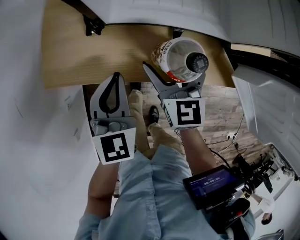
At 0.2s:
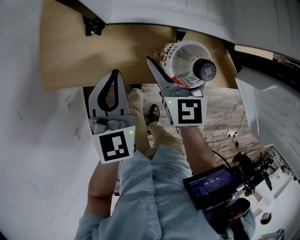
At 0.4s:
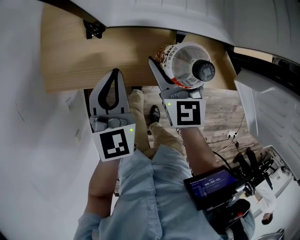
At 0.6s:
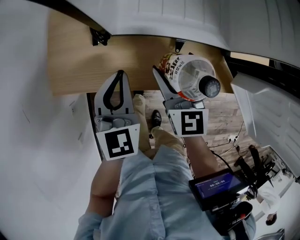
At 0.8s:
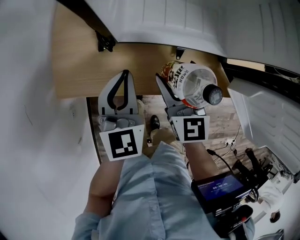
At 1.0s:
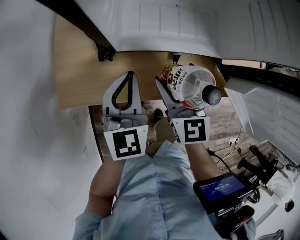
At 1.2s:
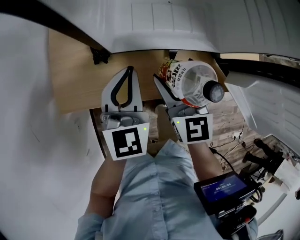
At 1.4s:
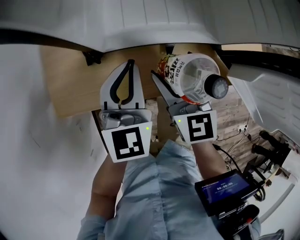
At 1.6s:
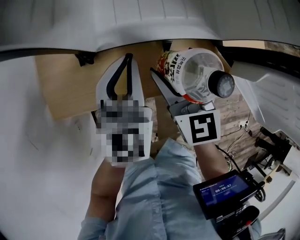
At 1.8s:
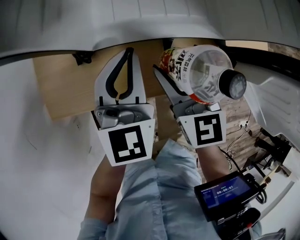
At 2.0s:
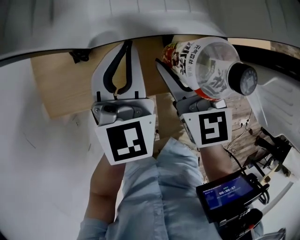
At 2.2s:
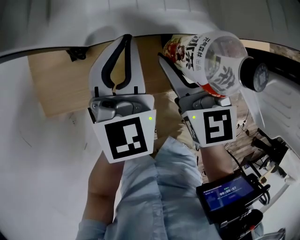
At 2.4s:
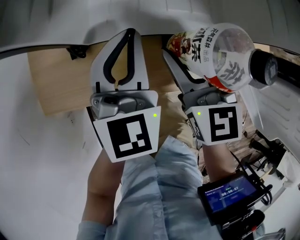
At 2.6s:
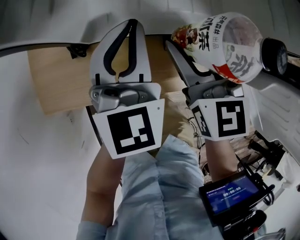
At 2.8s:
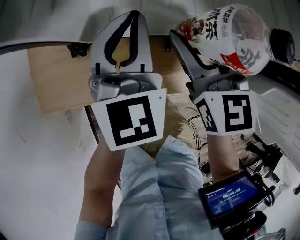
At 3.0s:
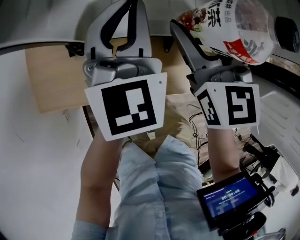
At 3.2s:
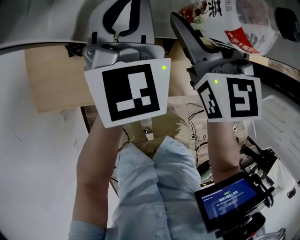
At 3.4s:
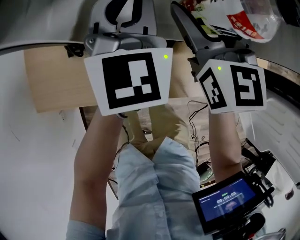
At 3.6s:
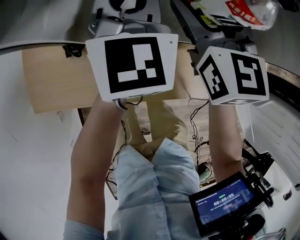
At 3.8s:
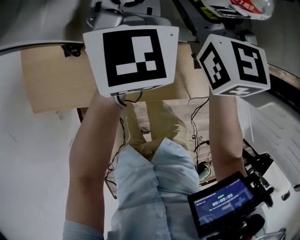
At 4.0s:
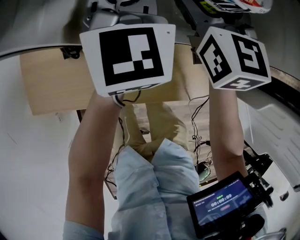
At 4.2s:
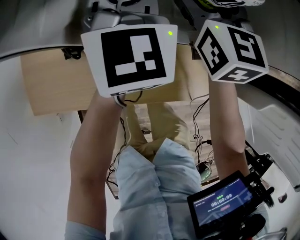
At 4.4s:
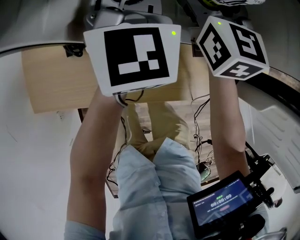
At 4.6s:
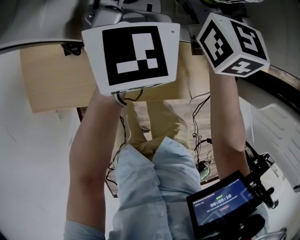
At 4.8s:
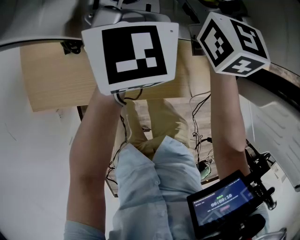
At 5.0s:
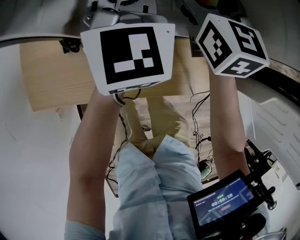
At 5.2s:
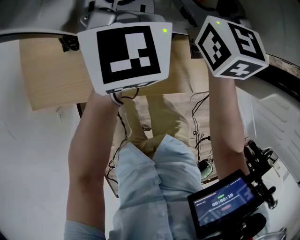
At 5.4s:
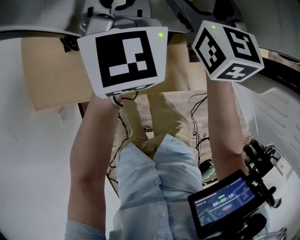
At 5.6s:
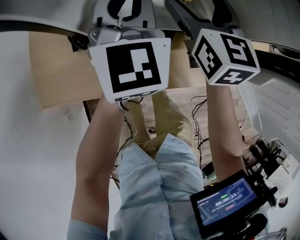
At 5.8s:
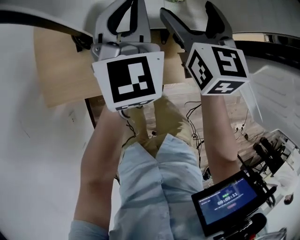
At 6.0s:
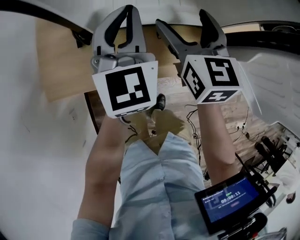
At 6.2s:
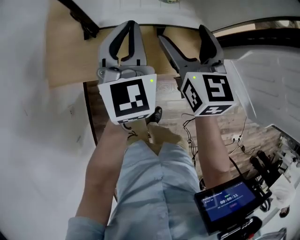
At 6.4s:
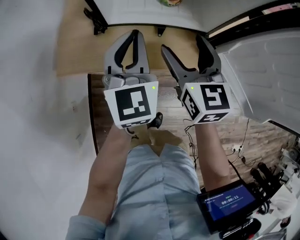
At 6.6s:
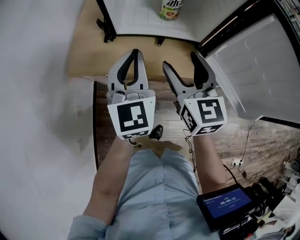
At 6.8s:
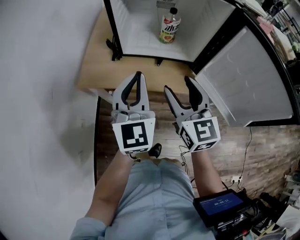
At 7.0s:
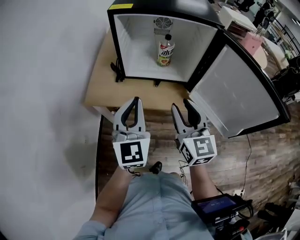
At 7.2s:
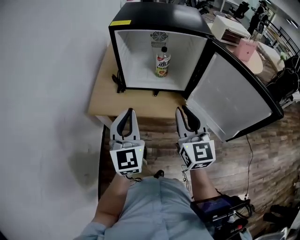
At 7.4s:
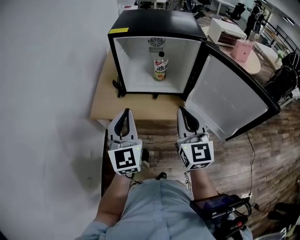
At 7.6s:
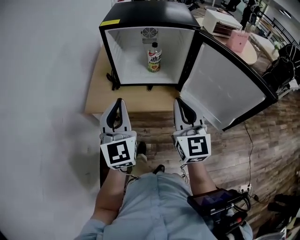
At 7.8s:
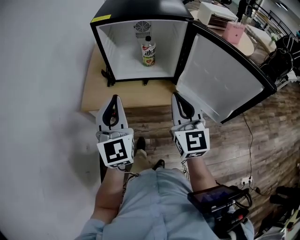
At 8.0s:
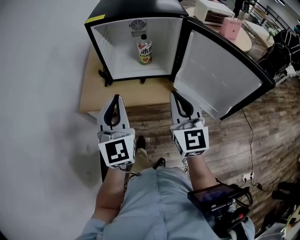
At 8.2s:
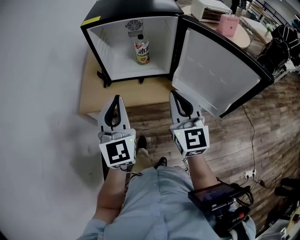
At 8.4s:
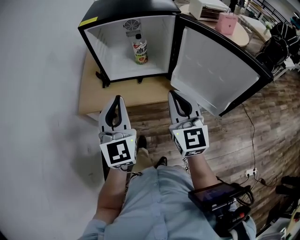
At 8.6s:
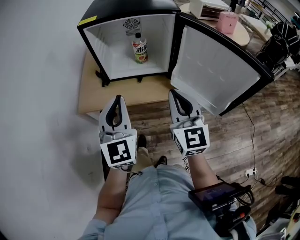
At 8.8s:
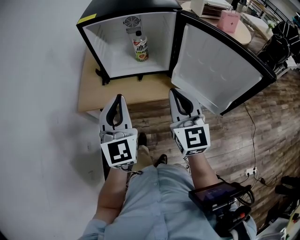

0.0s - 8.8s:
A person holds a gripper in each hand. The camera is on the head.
0.0s - 1.4s: The left gripper travels forward and upward by approximately 10 cm; the right gripper is displaced upward by roughly 5 cm.
1.4s - 3.0s: Both grippers travel together forward, approximately 10 cm.
3.0s - 4.4s: Both grippers move forward, roughly 10 cm.
4.4s - 5.8s: Both grippers move backward, about 5 cm.
5.8s - 7.4s: Both grippers move backward and upward, about 40 cm. The right gripper turns by approximately 30 degrees, and closes its fingers; the left gripper swivels some 20 degrees.
7.4s - 8.8s: The left gripper travels to the right by roughly 5 cm.

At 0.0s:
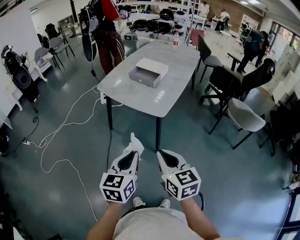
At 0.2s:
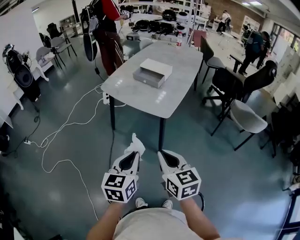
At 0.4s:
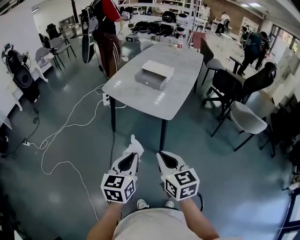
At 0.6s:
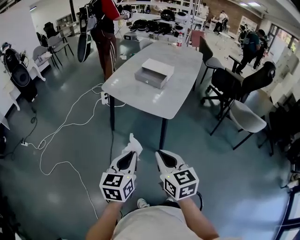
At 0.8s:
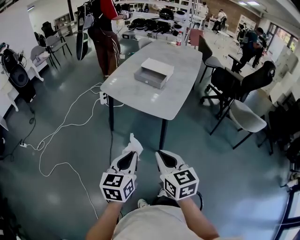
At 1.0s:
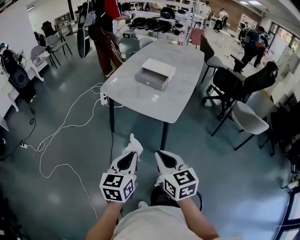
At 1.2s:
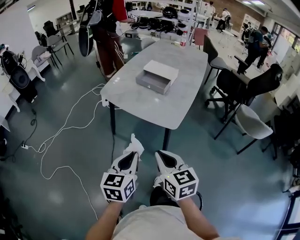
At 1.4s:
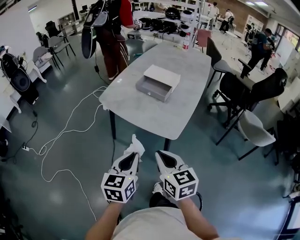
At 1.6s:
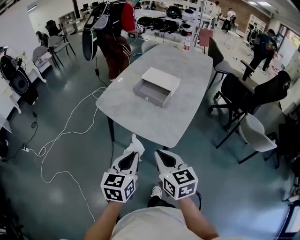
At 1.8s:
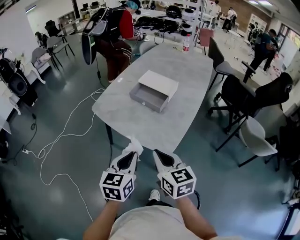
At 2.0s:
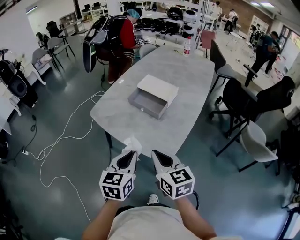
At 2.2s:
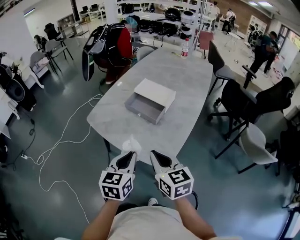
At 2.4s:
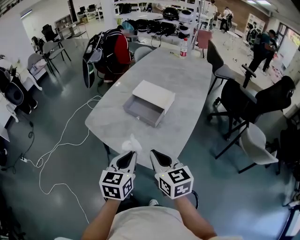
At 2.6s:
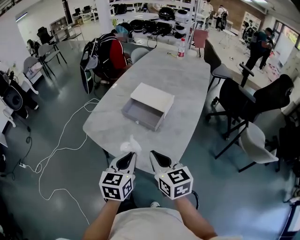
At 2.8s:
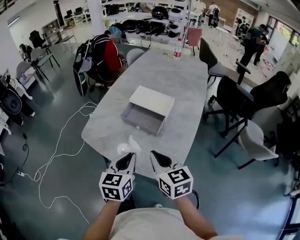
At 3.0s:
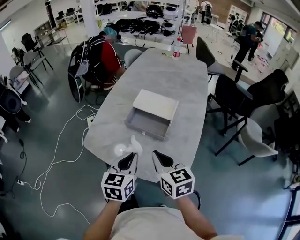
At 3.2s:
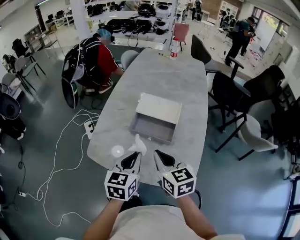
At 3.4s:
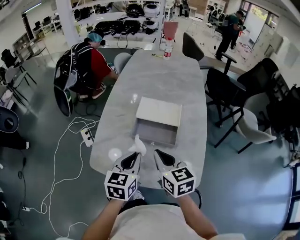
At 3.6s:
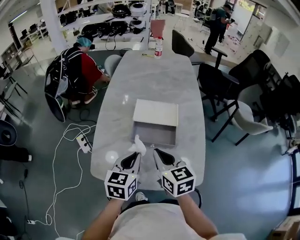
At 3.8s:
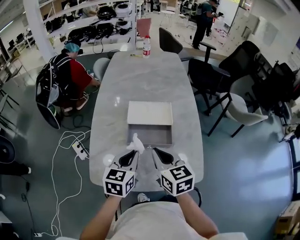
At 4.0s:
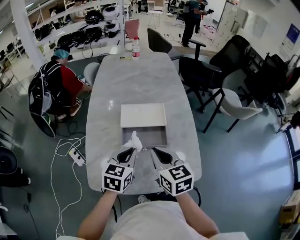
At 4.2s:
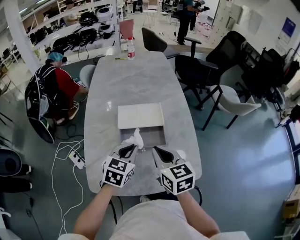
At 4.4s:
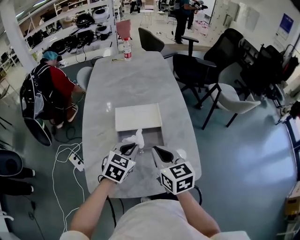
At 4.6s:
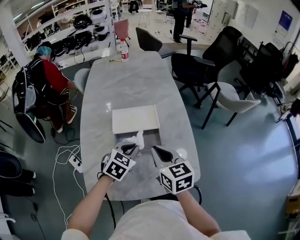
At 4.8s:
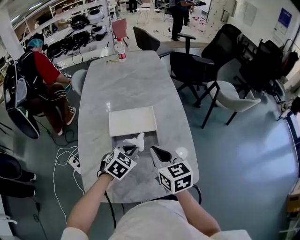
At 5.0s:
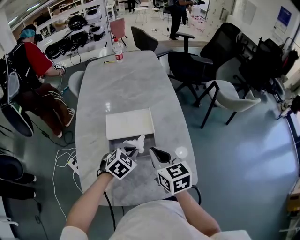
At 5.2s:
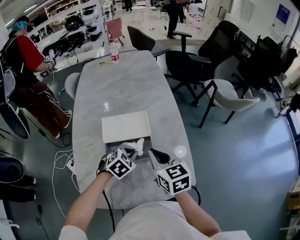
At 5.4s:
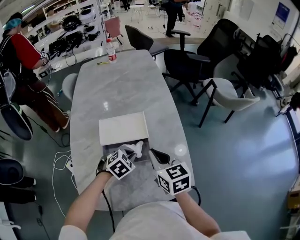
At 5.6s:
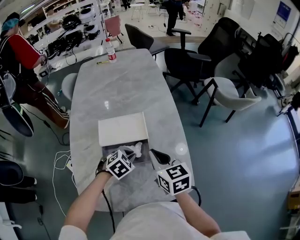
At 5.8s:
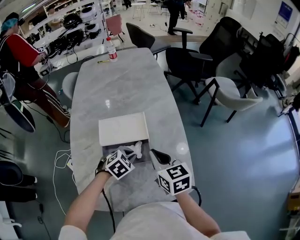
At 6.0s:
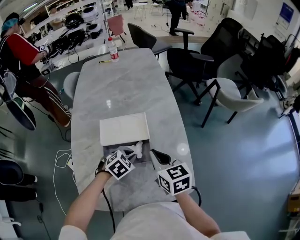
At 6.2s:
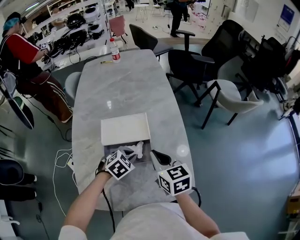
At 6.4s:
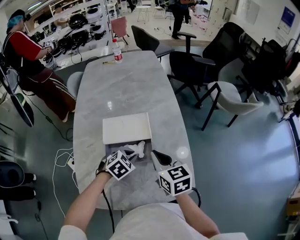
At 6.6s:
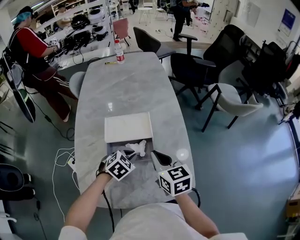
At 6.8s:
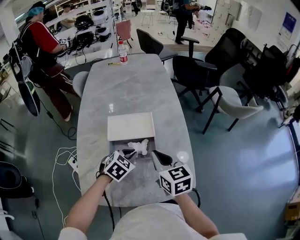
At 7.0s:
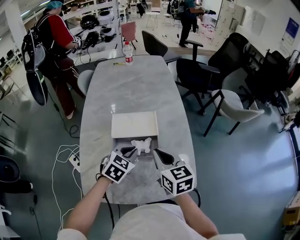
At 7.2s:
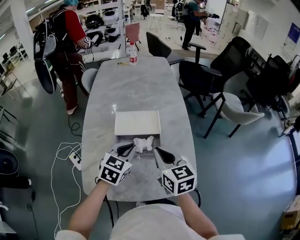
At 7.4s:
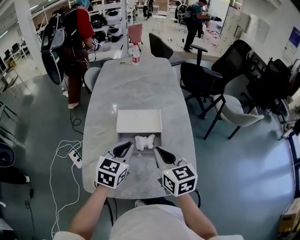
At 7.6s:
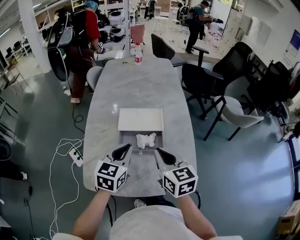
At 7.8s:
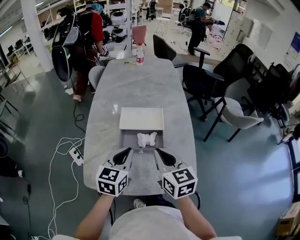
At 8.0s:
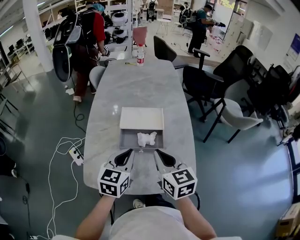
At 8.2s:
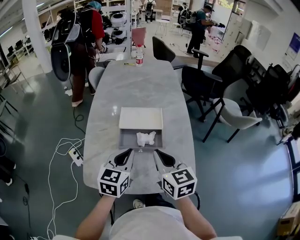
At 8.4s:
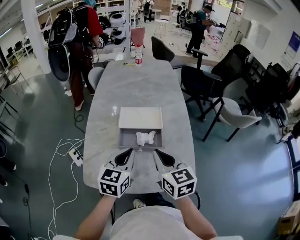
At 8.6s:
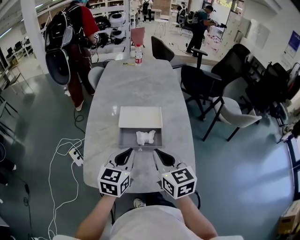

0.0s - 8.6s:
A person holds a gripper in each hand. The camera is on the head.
0.0s - 1.4s: The grippers both shift forward by some 15 cm.
1.4s - 2.8s: Both grippers travel together forward, roughly 25 cm.
2.8s - 4.4s: The left gripper moves about 20 cm, and rotates some 60 degrees; the right gripper moves some 15 cm, and turns by approximately 30 degrees.
4.4s - 5.8s: The right gripper travels forward and to the right by some 10 cm, while the left gripper heads downward, forward and to the right, covering about 15 cm, and turns by roughly 30 degrees.
5.8s - 7.2s: The right gripper heads backward and upward, covering some 10 cm; the left gripper travels upward by roughly 15 cm, and rotates some 40 degrees.
7.2s - 8.6s: Both grippers move backward, roughly 5 cm. The left gripper turns by about 20 degrees.

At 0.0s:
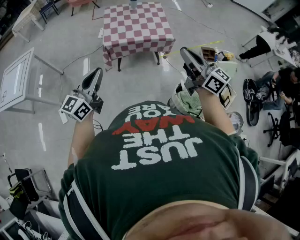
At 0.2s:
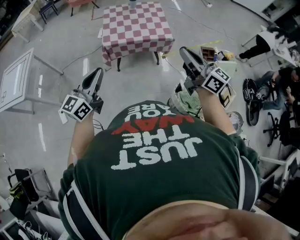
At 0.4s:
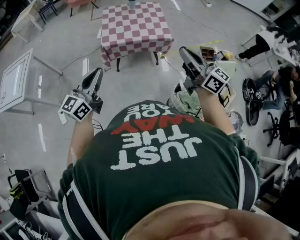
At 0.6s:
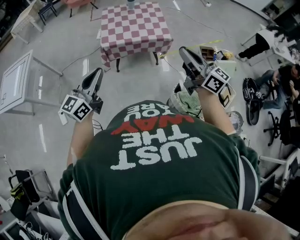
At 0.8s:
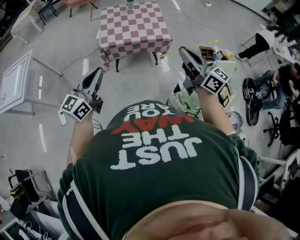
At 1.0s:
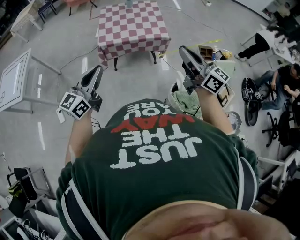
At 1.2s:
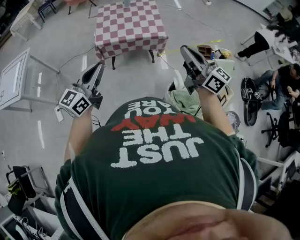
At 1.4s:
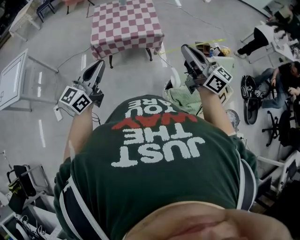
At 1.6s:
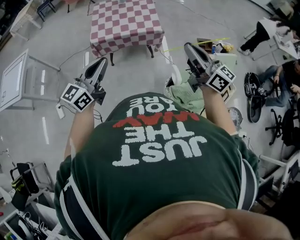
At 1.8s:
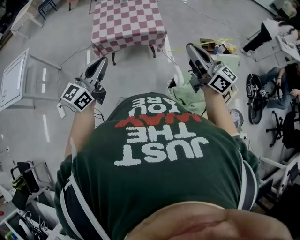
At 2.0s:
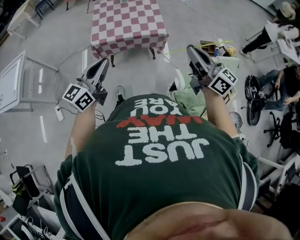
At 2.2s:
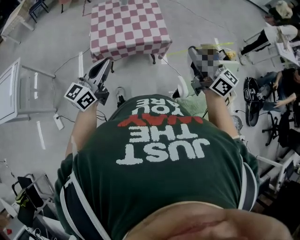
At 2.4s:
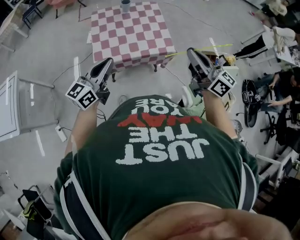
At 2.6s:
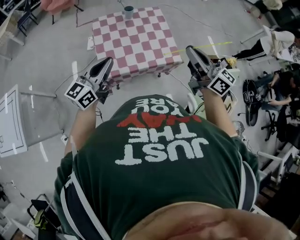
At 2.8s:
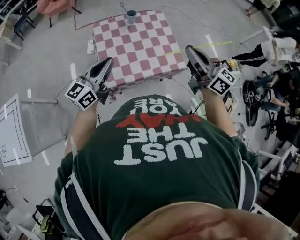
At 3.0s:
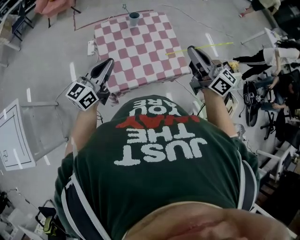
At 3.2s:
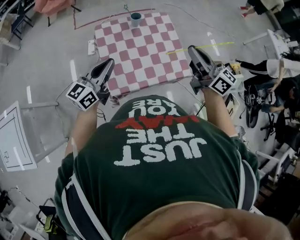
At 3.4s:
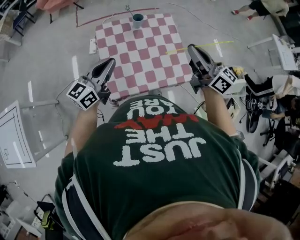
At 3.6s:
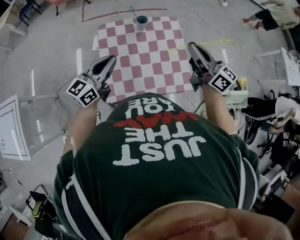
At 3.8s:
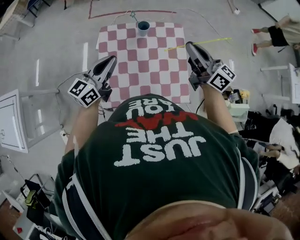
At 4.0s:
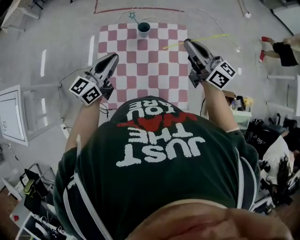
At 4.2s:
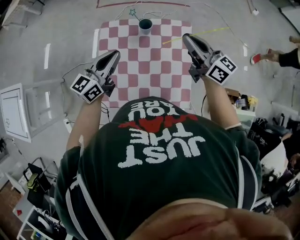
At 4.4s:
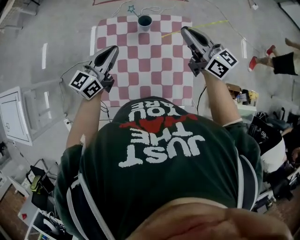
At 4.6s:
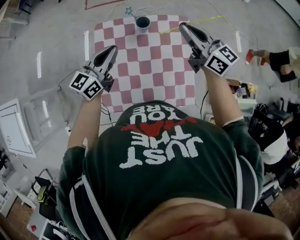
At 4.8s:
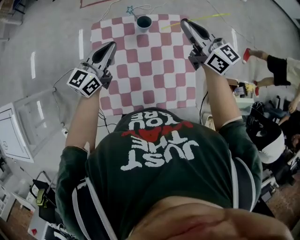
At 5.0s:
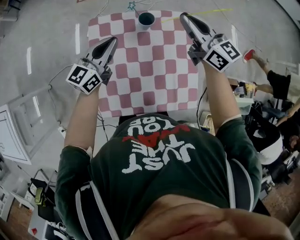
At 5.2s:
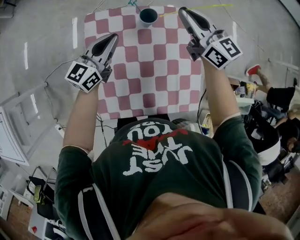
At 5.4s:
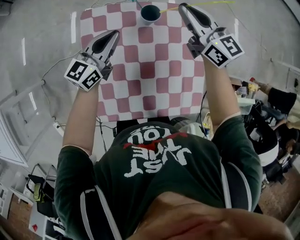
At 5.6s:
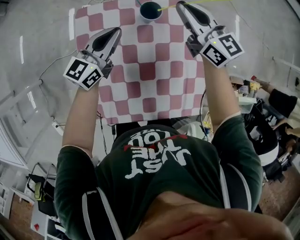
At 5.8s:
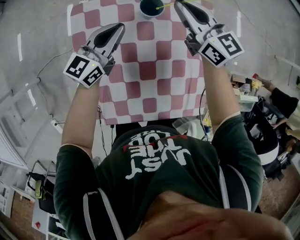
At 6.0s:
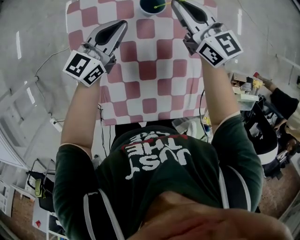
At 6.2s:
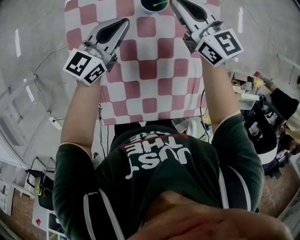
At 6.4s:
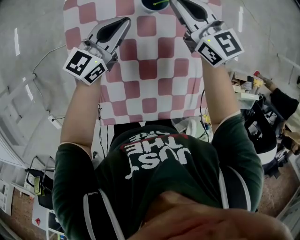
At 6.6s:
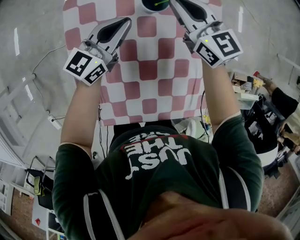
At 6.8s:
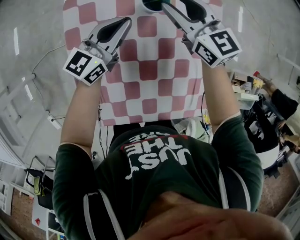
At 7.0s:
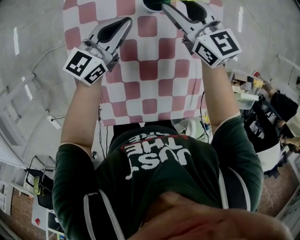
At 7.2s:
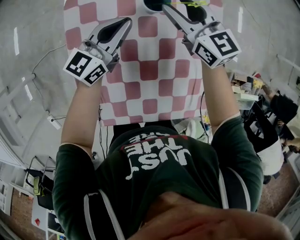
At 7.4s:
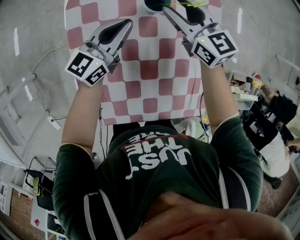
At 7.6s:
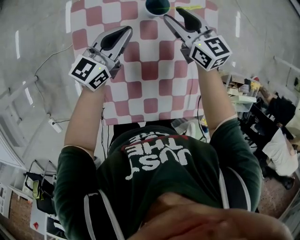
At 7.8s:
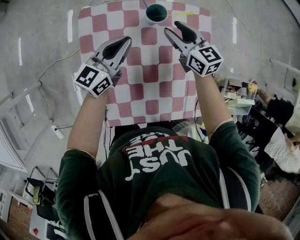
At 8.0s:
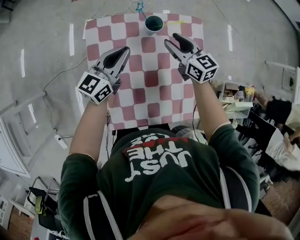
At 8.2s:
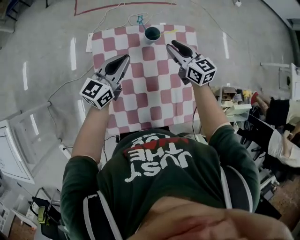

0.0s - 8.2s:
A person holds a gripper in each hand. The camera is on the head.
0.0s - 1.6s: The two grippers go approximately 15 cm to the right.
1.6s - 3.2s: The two grippers travel together, forward and to the left, approximately 60 cm.
3.2s - 5.0s: The left gripper heads forward and downward, covering some 35 cm. Meanwhile the right gripper is displaced forward by about 40 cm.
5.0s - 6.6s: Both grippers move downward, some 20 cm.
6.6s - 8.2s: The left gripper moves upward and backward, approximately 15 cm. The right gripper moves backward and upward, about 10 cm, and opens its fingers.
